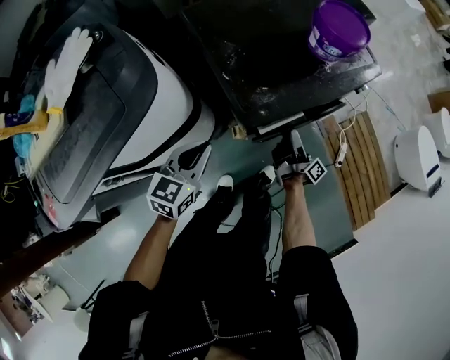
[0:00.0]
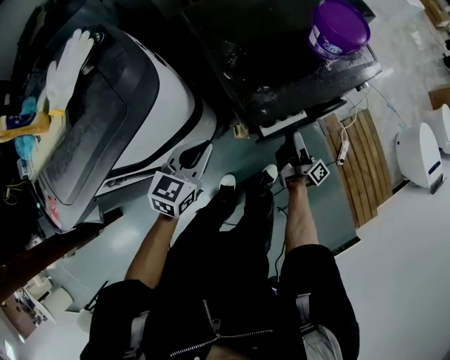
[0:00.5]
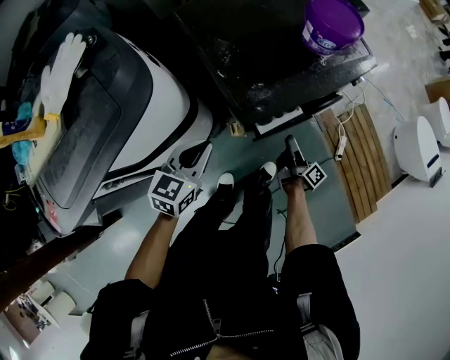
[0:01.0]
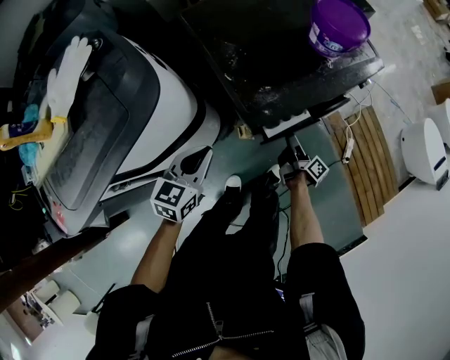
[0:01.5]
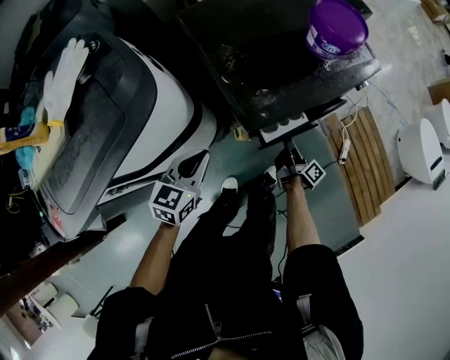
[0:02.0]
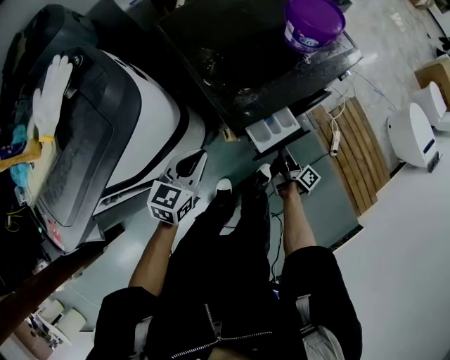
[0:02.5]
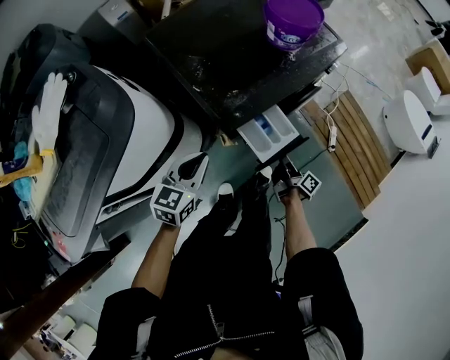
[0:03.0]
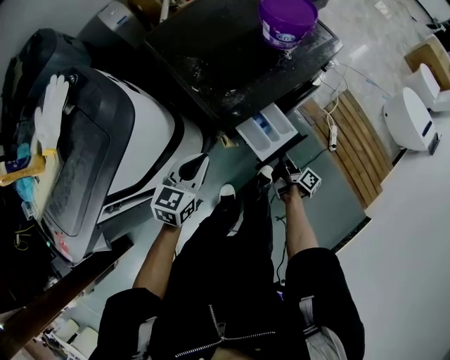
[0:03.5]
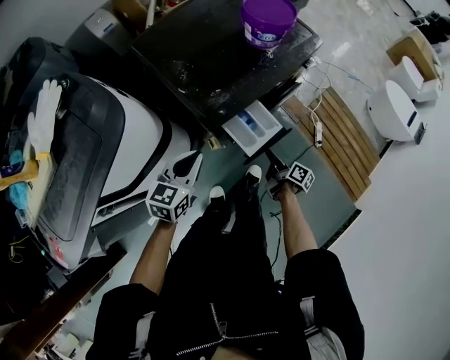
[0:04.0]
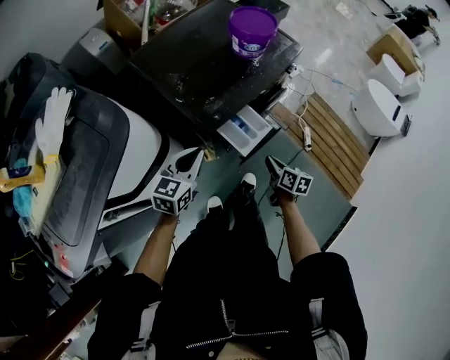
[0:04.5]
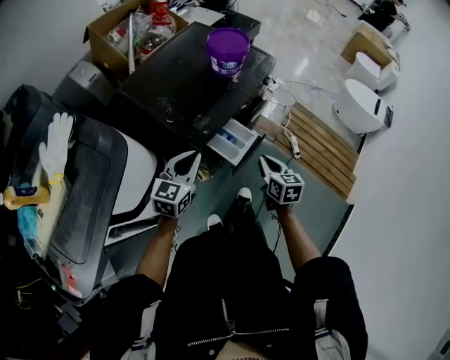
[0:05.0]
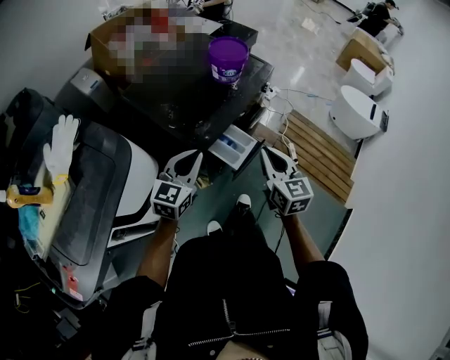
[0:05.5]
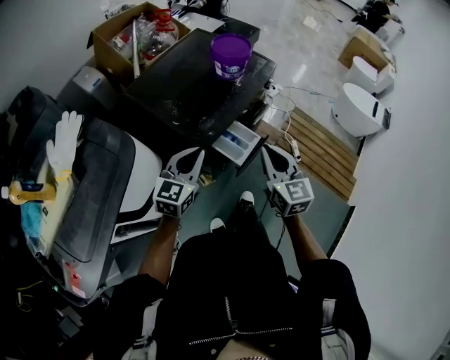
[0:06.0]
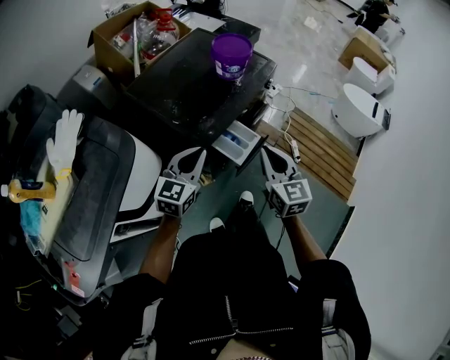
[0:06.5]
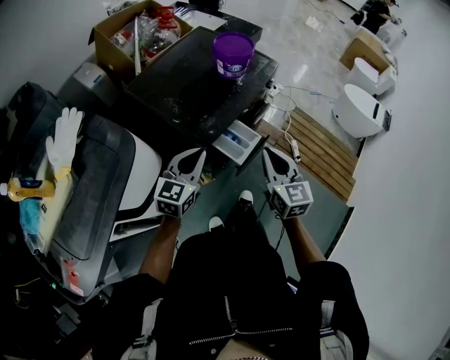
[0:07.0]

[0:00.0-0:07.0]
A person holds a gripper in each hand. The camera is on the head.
0:00.0 to 0:02.0: The right gripper goes some 10 cm downward, and closes its fingers.
0:02.0 to 0:03.5: The left gripper moves to the right, approximately 5 cm; the right gripper goes some 10 cm backward and to the right.
0:03.5 to 0:05.0: The left gripper is displaced upward by roughly 5 cm; the right gripper shifts some 20 cm upward, and rolls counterclockwise, seen from behind, by roughly 60 degrees.
0:05.0 to 0:07.0: The right gripper shifts roughly 15 cm upward, and swivels some 20 degrees.

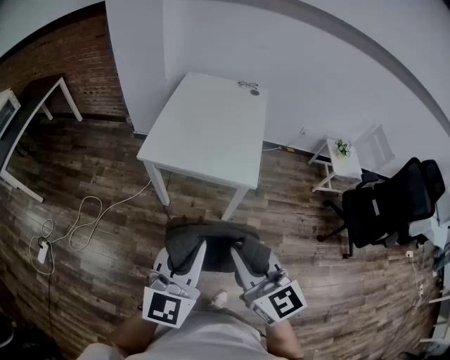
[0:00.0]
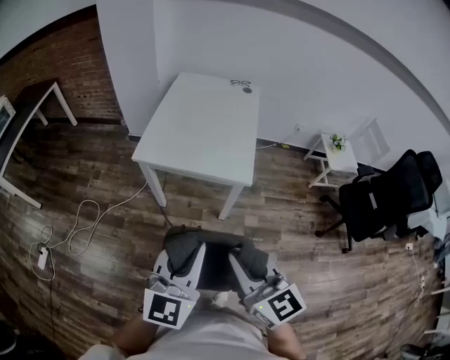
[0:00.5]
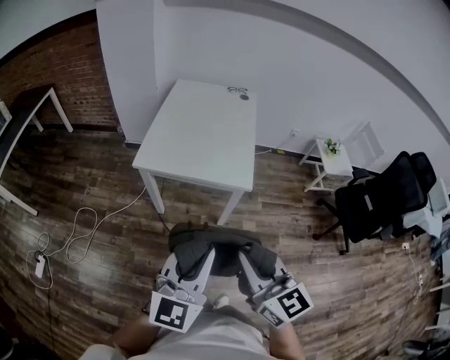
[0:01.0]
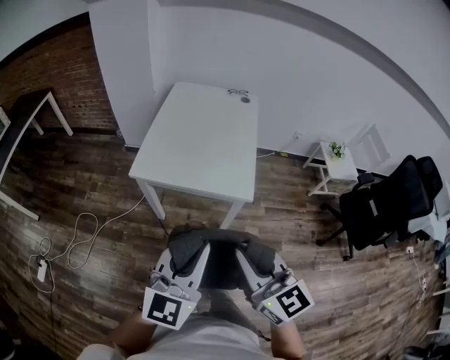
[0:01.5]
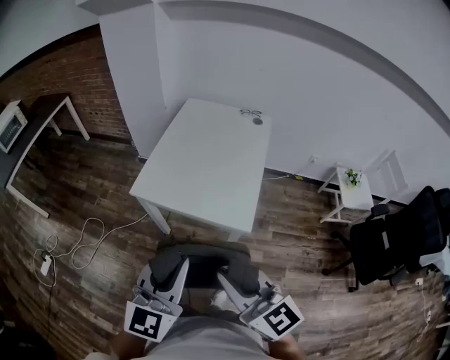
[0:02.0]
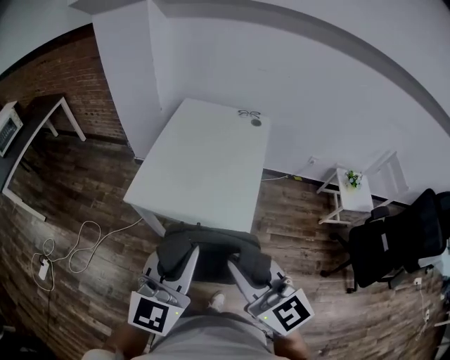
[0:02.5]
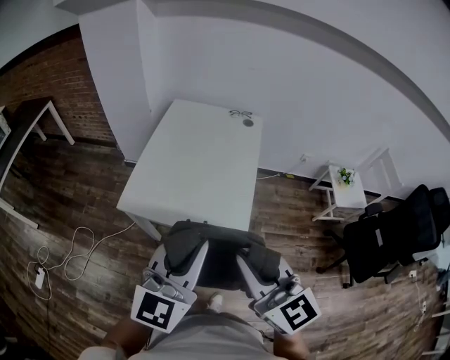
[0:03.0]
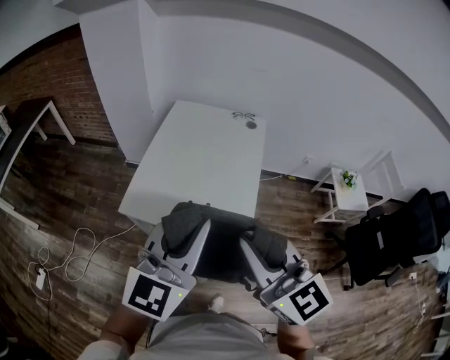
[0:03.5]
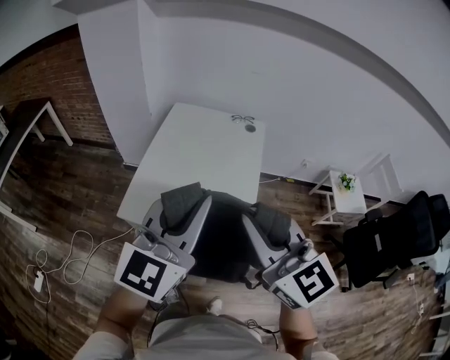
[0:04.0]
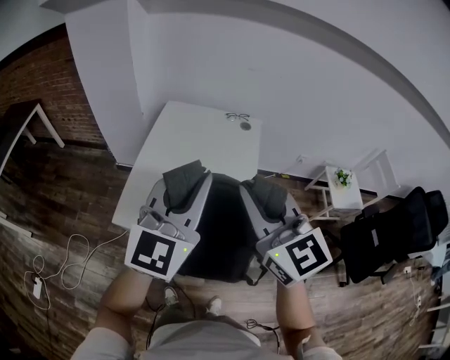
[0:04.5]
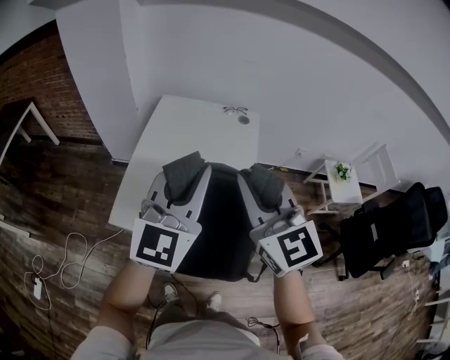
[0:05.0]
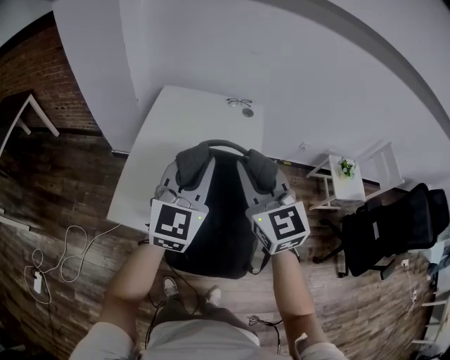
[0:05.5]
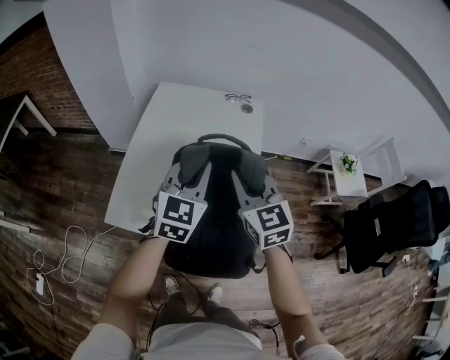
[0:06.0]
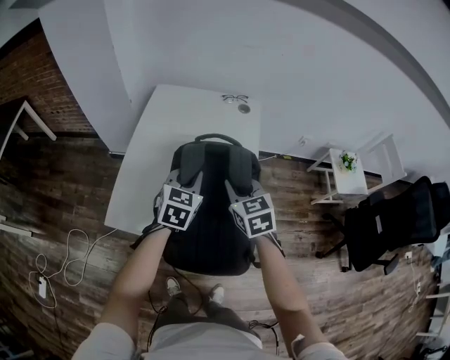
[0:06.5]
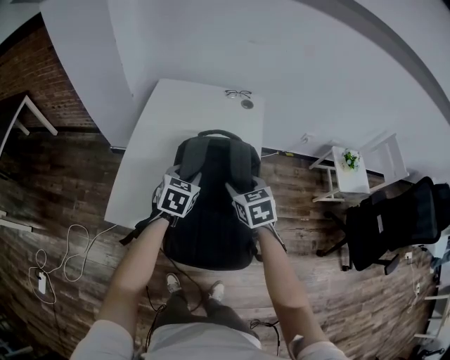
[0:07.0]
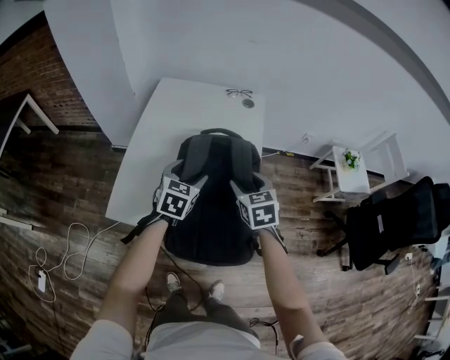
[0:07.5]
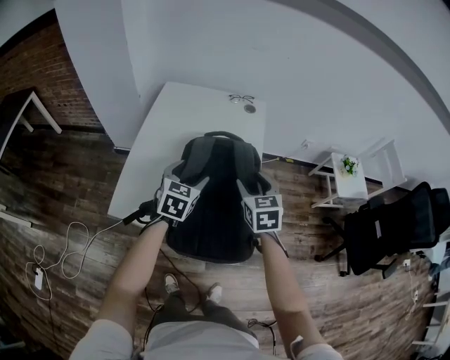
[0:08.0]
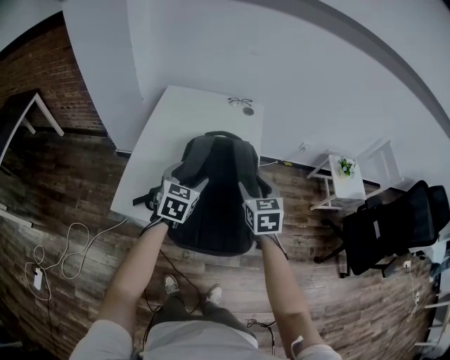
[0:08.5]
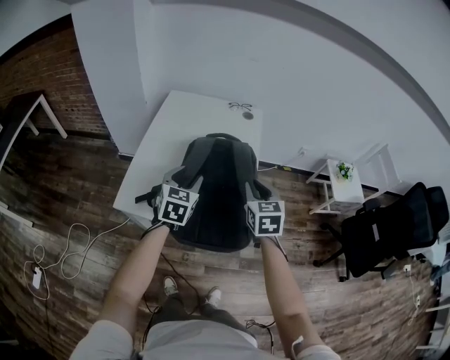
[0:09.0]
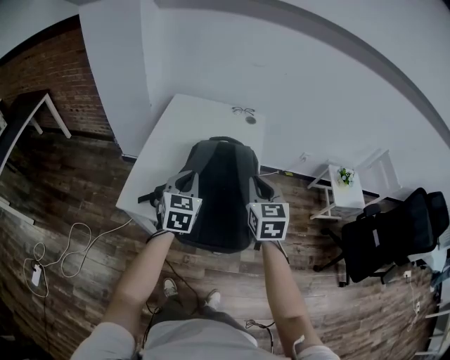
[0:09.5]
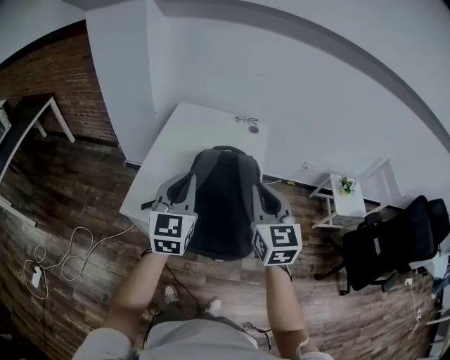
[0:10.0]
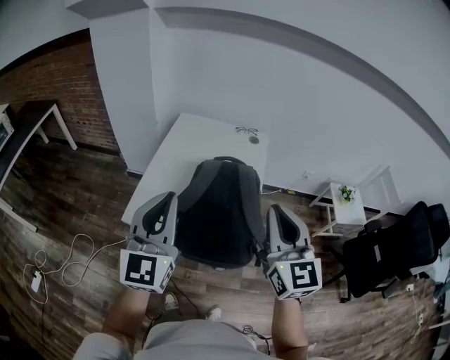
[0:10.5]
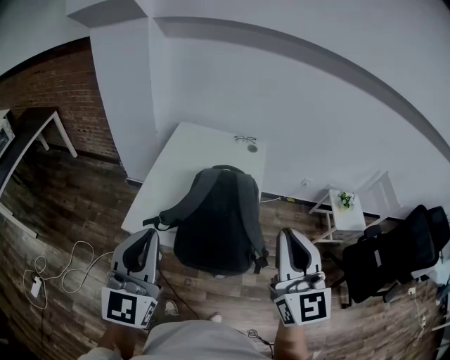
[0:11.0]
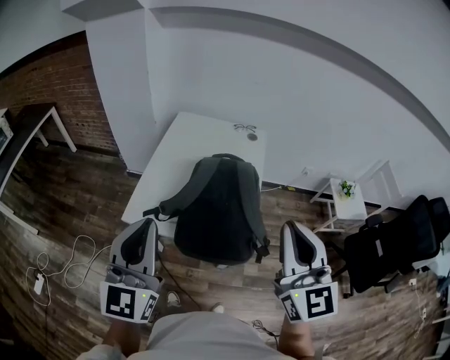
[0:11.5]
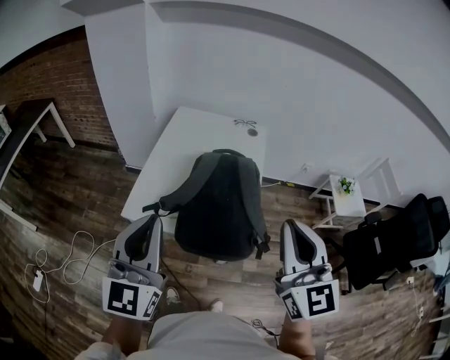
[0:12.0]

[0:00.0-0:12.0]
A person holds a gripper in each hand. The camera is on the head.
0:00.0 to 0:02.0: Both grippers move forward and to the right, some 15 cm.
0:02.0 to 0:04.0: The grippers both shift forward and upward by about 25 cm.
0:04.0 to 0:06.0: The two grippers go approximately 30 cm forward and downward. The right gripper swivels roughly 20 degrees.
0:06.0 to 0:08.0: The right gripper heads downward and to the right, covering about 10 cm, swivels roughly 20 degrees, and opens. The left gripper is displaced downward by roughly 10 cm, changes its angle by roughly 20 degrees, and opens.
0:08.0 to 0:10.0: Both grippers travel together upward and backward, some 25 cm. The left gripper turns by approximately 30 degrees, and closes. Meanwhile the right gripper swivels roughly 20 degrees, and closes.
0:10.0 to 0:12.0: The two grippers go about 15 cm backward and upward.

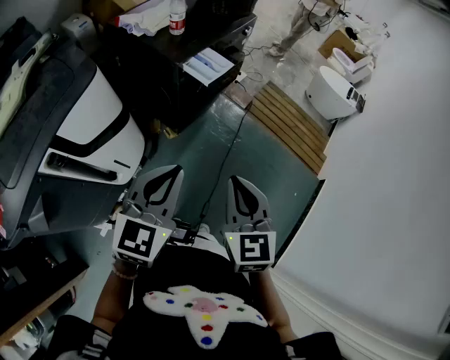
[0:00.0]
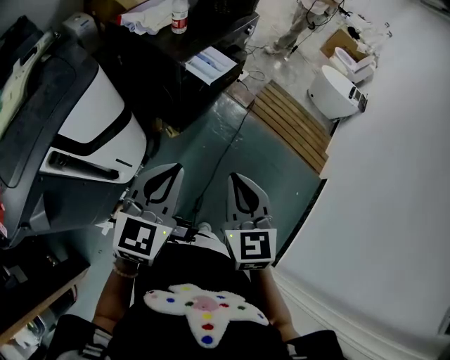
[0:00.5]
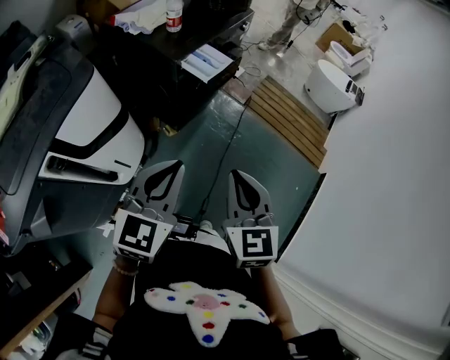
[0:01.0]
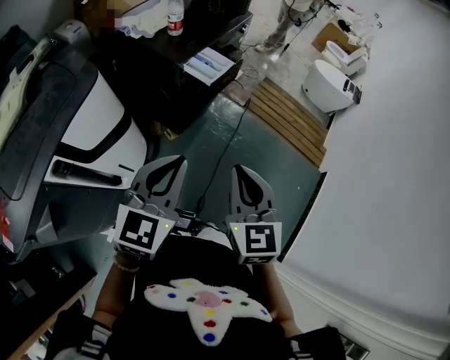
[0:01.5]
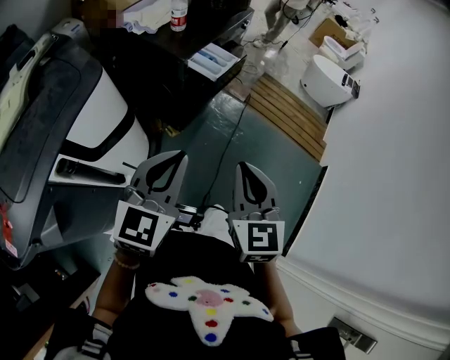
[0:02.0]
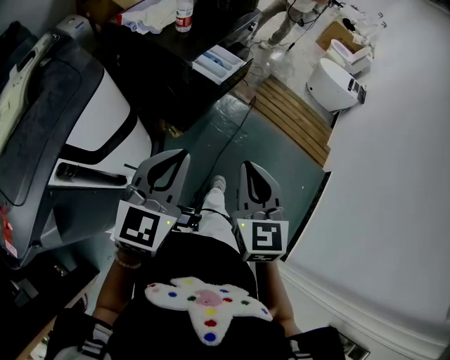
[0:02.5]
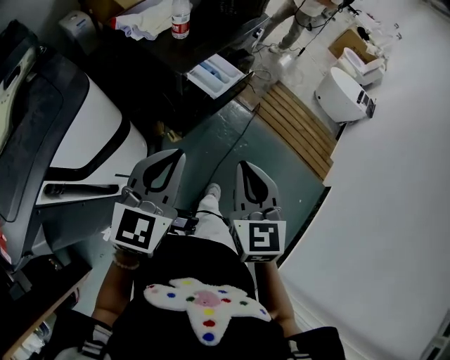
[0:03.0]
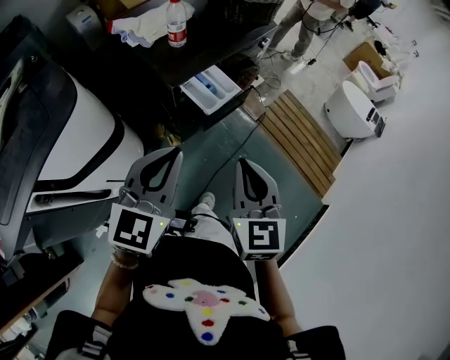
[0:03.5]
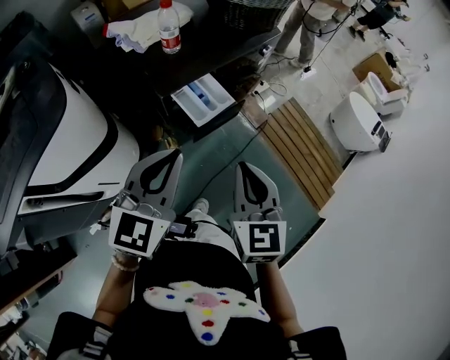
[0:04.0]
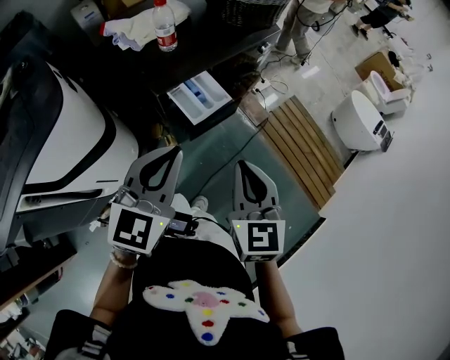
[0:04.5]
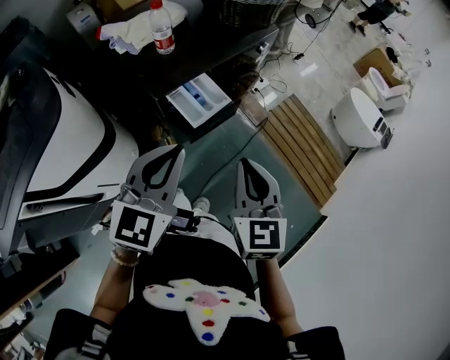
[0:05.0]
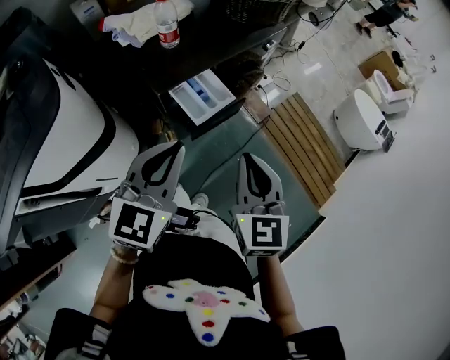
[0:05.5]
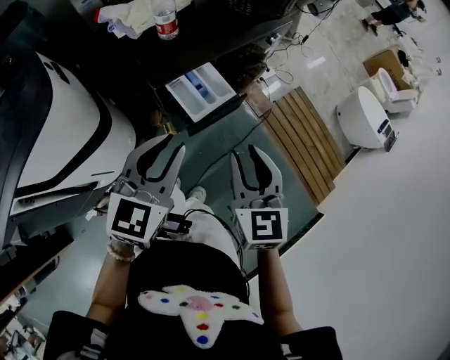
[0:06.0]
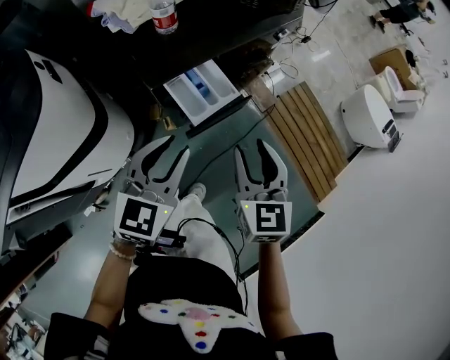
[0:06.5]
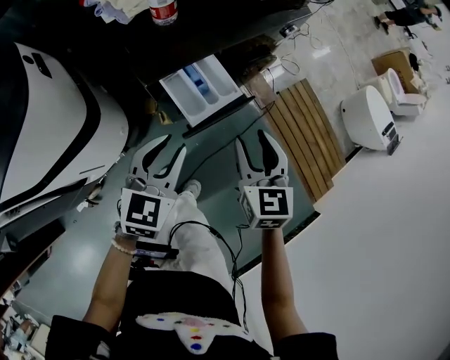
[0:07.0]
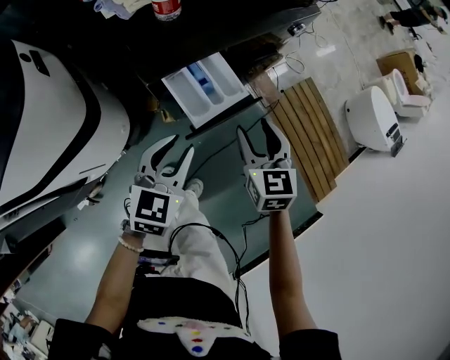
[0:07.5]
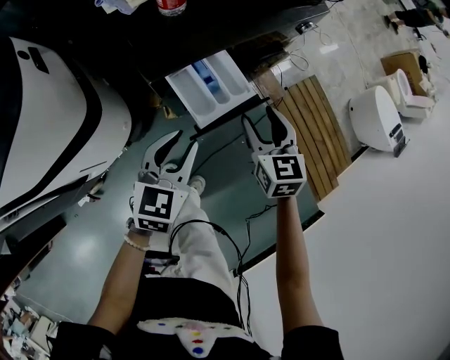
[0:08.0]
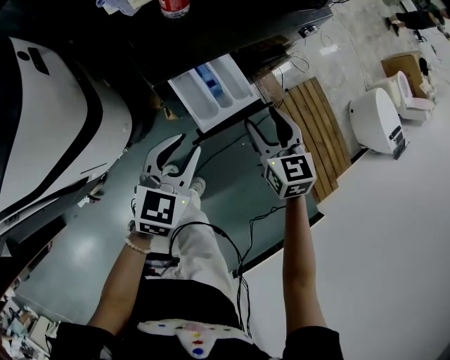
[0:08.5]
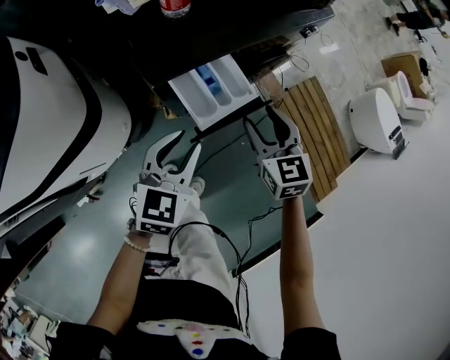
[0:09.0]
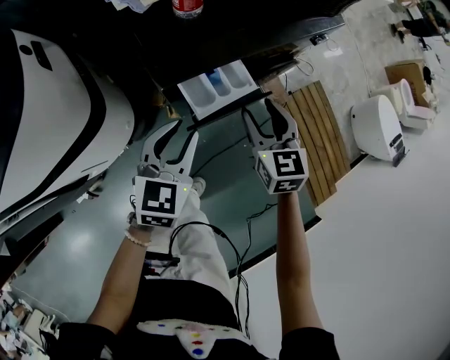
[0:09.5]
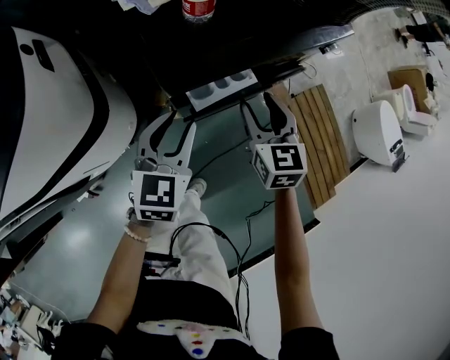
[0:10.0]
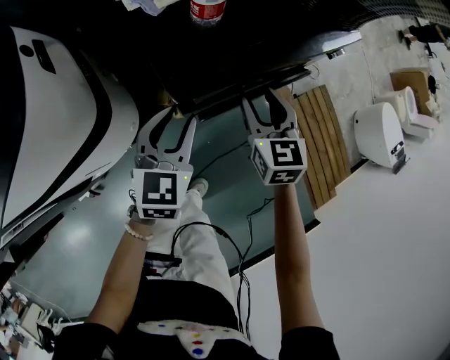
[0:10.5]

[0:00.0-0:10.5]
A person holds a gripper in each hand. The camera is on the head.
0:00.0 to 0:02.0: The left gripper goes some 5 cm to the left, while the right gripper moves approximately 5 cm.
0:02.0 to 0:04.0: Both grippers move forward, roughly 25 cm.
0:04.0 to 0:06.5: The right gripper heads forward and downward, covering roughly 10 cm, and opens; the left gripper shifts roughly 10 cm downward and forward, and opens up.
0:06.5 to 0:08.5: The right gripper travels downward and forward by some 15 cm, and opens; the left gripper travels downward by approximately 10 cm.
0:08.5 to 0:10.5: The two grippers go about 10 cm forward and to the left.
